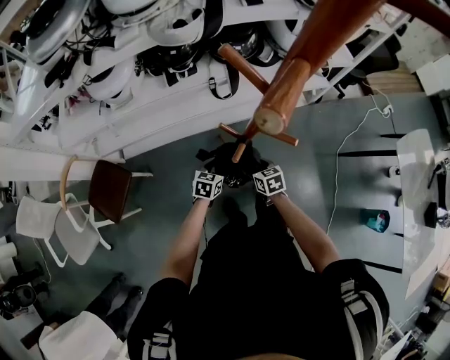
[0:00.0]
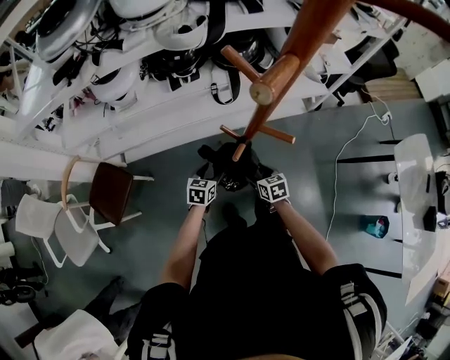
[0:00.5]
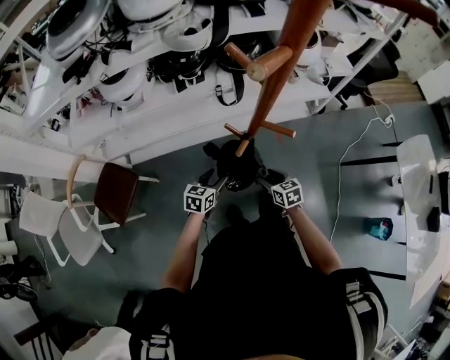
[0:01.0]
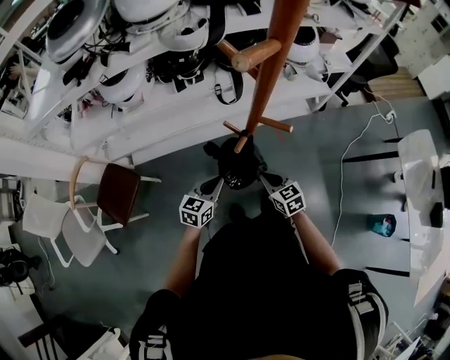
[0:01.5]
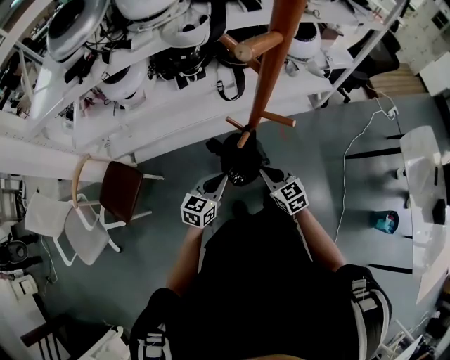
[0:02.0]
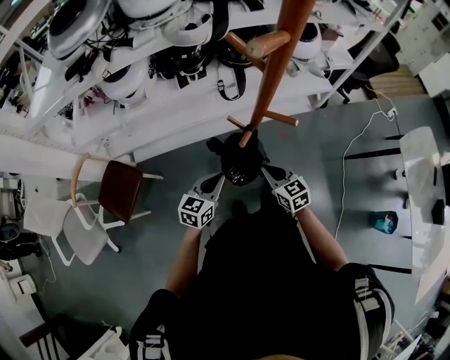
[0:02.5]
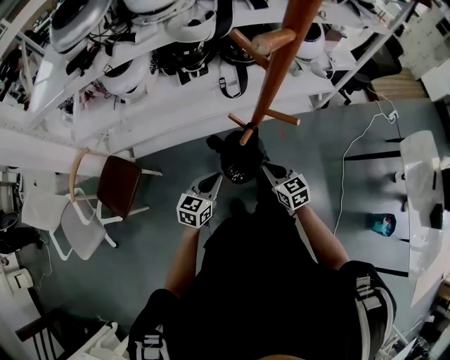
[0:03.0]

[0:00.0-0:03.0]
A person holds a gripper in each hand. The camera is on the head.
0:00.0 to 0:01.5: The grippers both shift upward and backward by some 15 cm. The left gripper closes, while the right gripper closes.
0:01.5 to 0:03.0: The grippers move only a little.

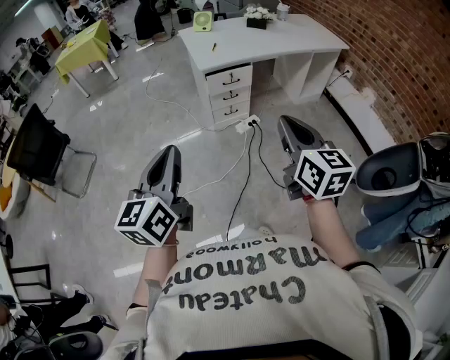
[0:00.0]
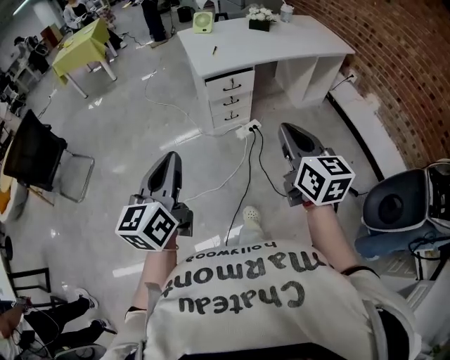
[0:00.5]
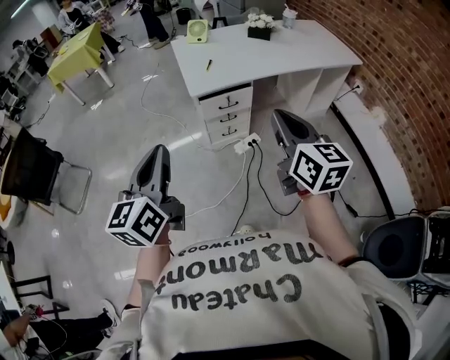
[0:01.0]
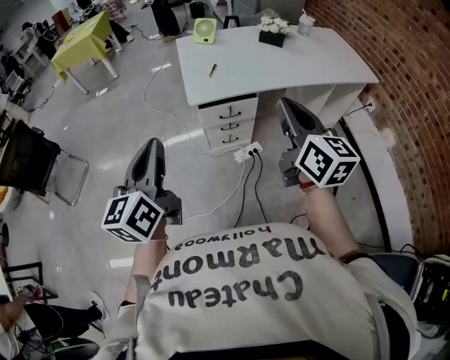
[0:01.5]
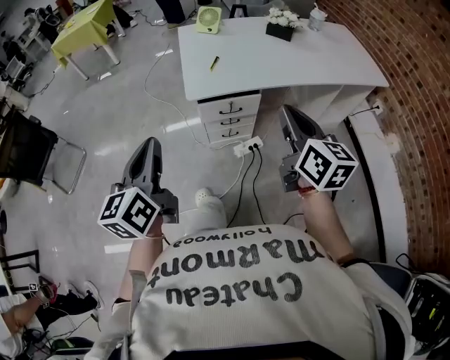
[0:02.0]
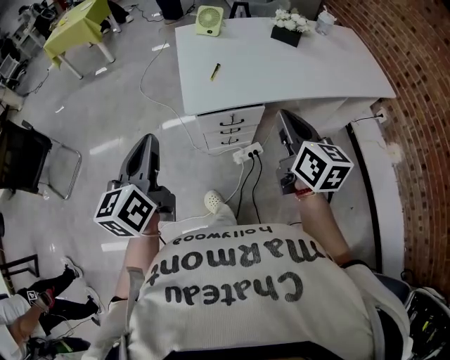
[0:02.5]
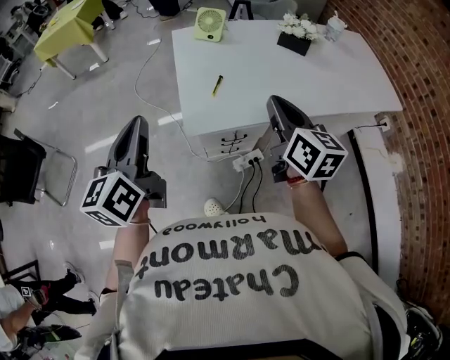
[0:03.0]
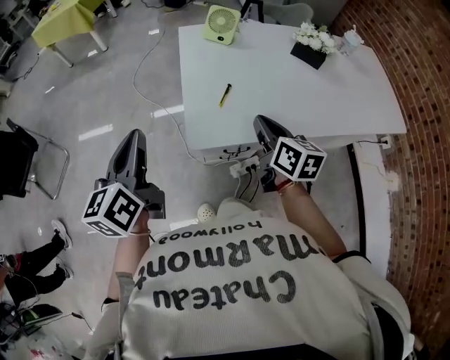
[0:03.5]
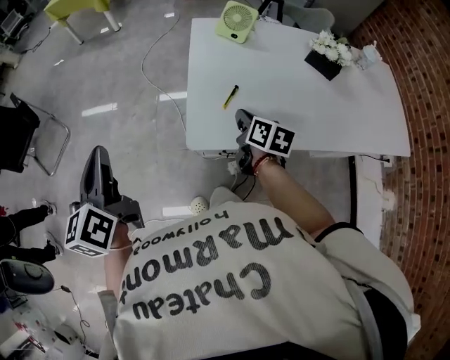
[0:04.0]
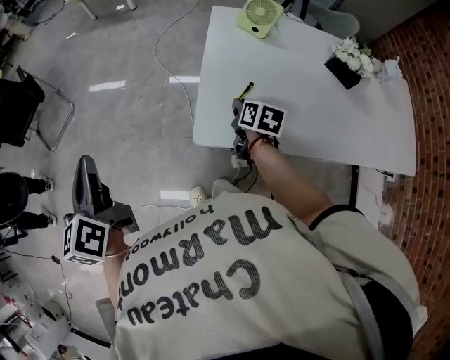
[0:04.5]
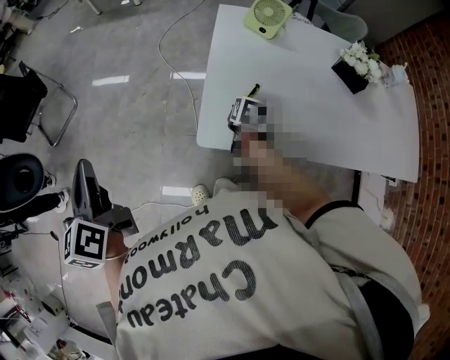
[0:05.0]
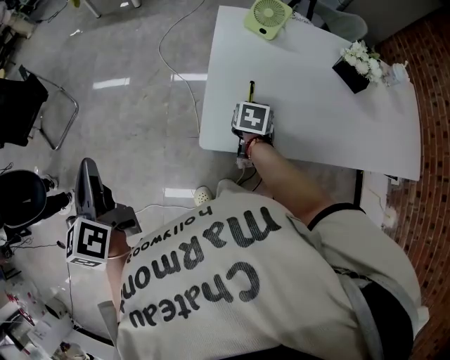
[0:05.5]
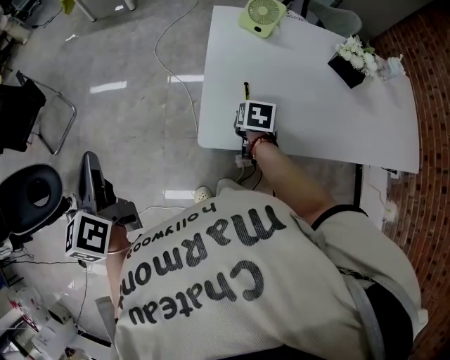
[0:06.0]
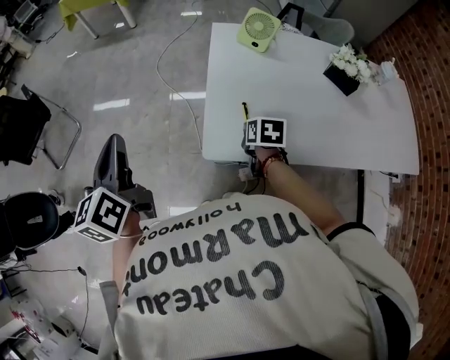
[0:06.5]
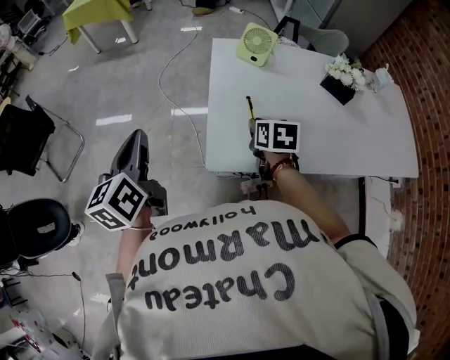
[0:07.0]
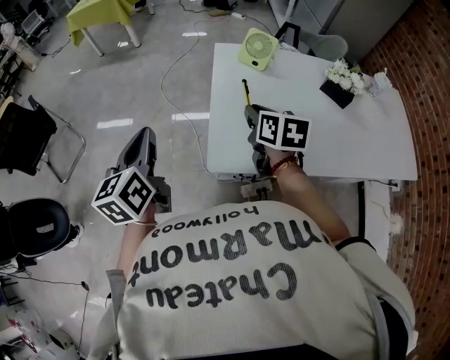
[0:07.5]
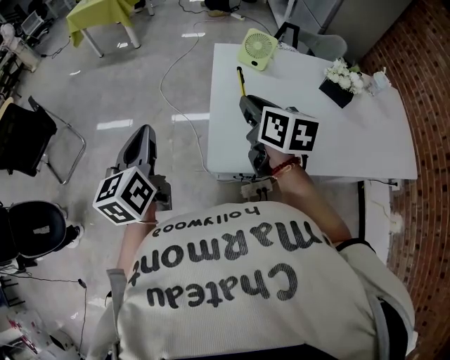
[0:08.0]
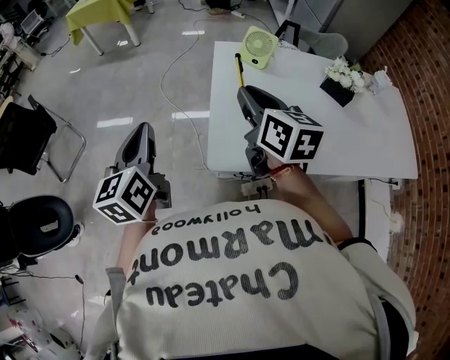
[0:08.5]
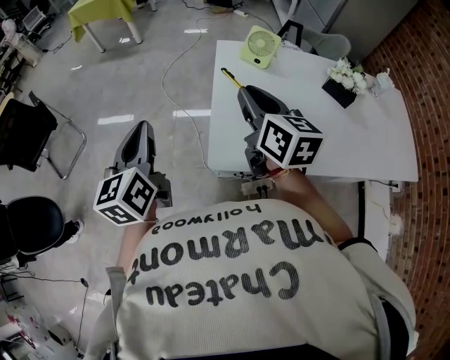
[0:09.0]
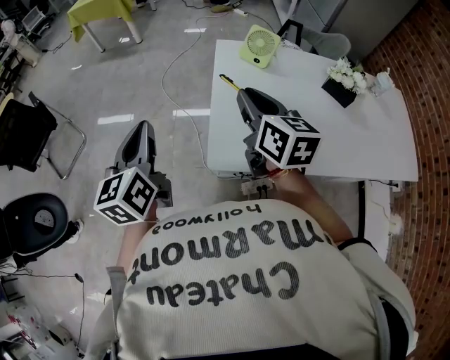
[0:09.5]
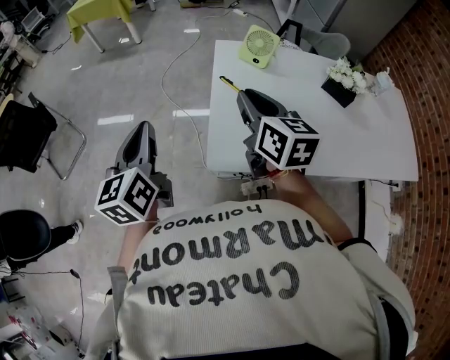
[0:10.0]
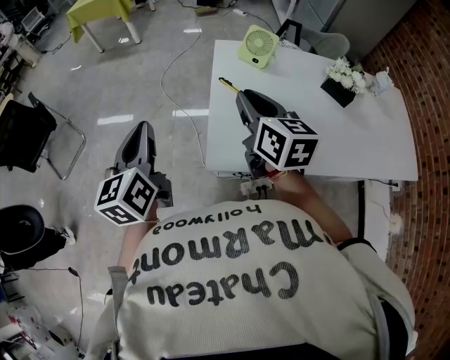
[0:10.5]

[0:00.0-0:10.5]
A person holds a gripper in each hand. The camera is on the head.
0:00.0 to 0:02.0: The two grippers go about 40 cm forward.
0:02.0 to 0:04.0: The right gripper moves forward and downward, approximately 50 cm, and rotates roughly 30 degrees; the left gripper travels forward by roughly 30 cm, and swivels roughly 20 degrees.
0:04.0 to 0:06.5: The left gripper goes approximately 5 cm forward. Meanwhile the right gripper moves downward, approximately 5 cm, and swivels about 30 degrees.
0:06.5 to 0:08.5: The left gripper ends up roughly 5 cm from where it was, while the right gripper heads upward, covering approximately 25 cm, and tips its fingers upward by some 40 degrees.
0:08.5 to 0:10.5: Both grippers stay put.

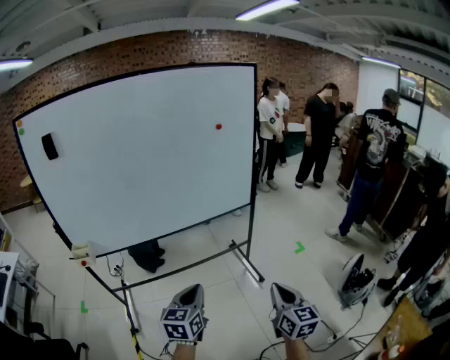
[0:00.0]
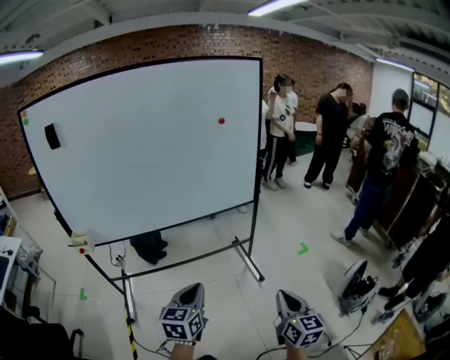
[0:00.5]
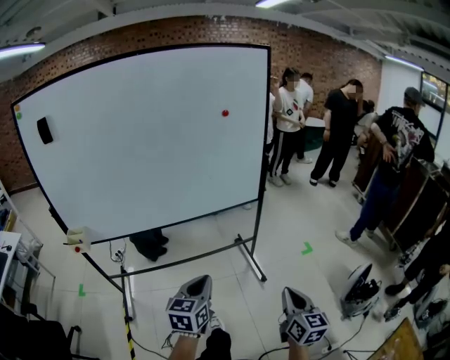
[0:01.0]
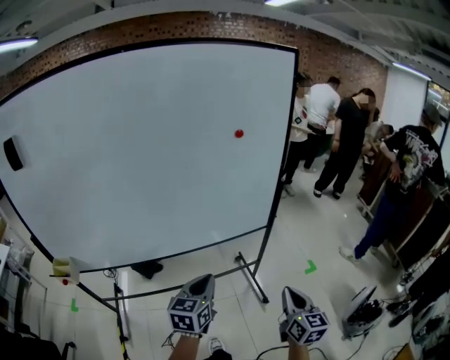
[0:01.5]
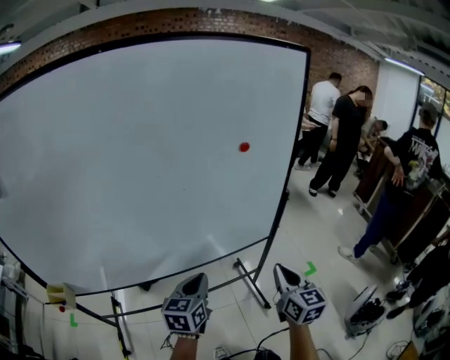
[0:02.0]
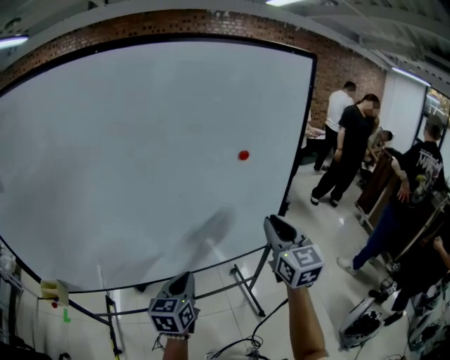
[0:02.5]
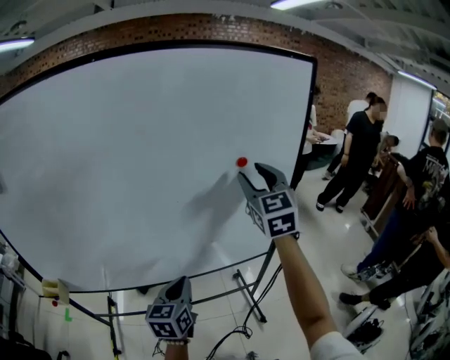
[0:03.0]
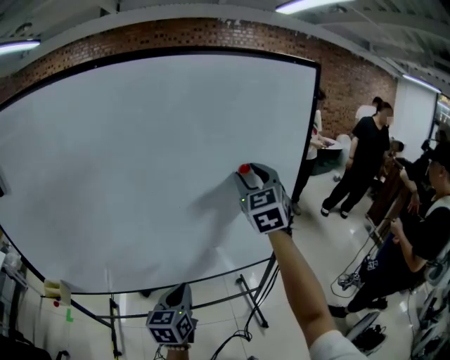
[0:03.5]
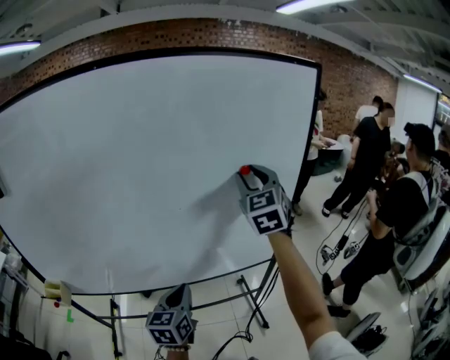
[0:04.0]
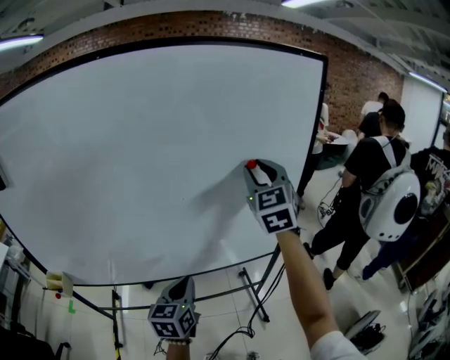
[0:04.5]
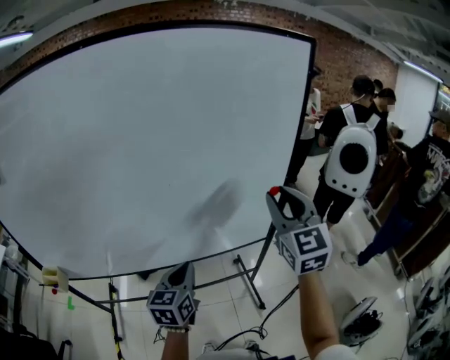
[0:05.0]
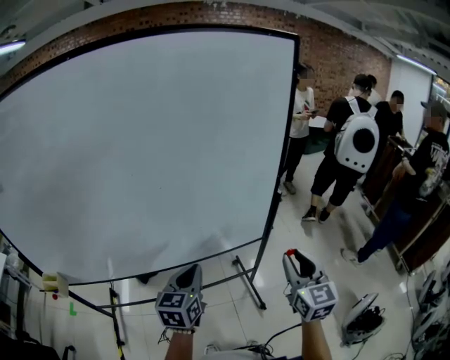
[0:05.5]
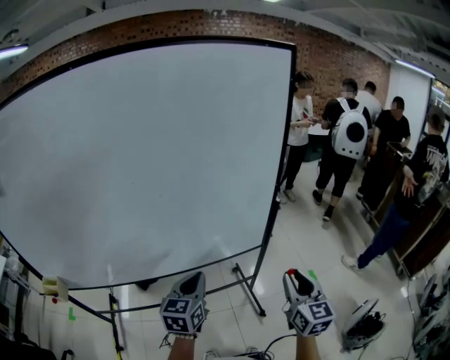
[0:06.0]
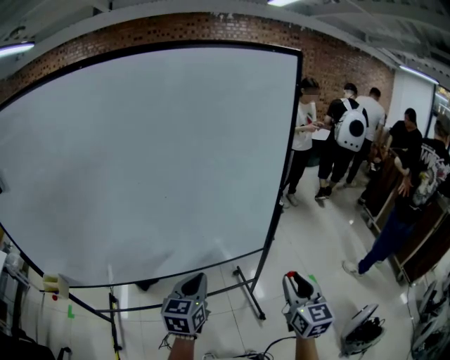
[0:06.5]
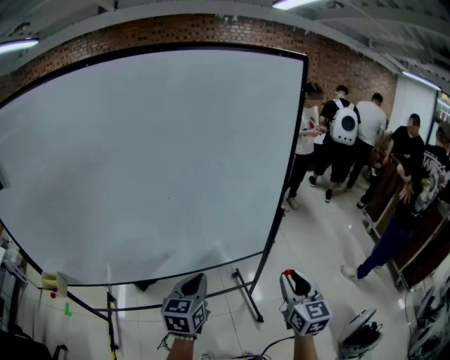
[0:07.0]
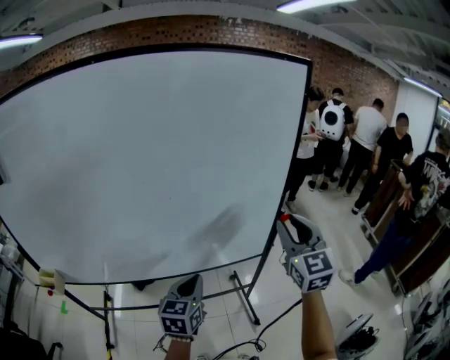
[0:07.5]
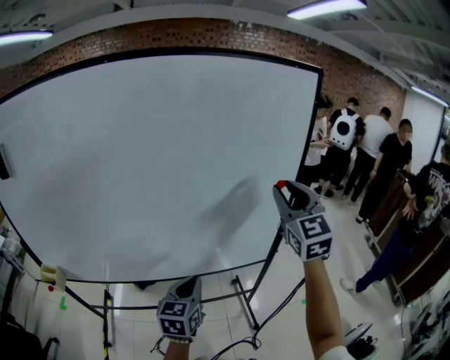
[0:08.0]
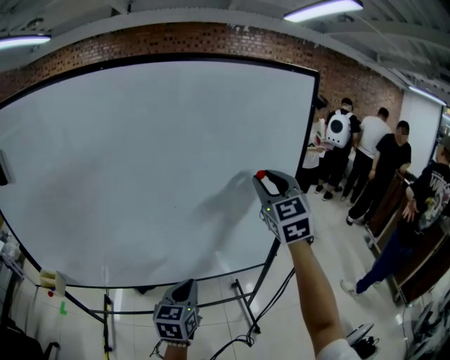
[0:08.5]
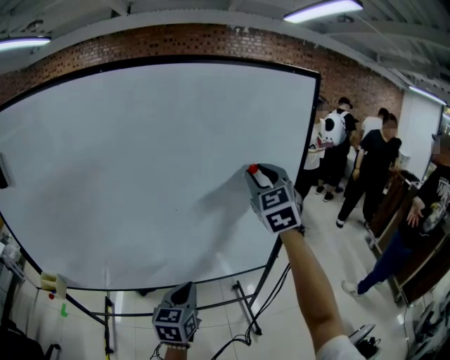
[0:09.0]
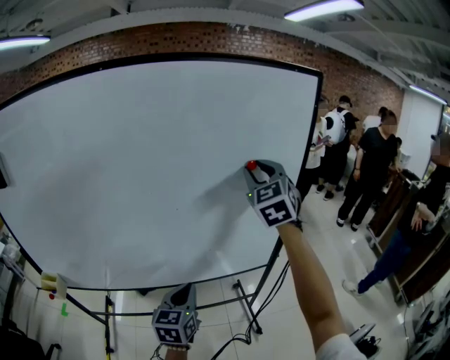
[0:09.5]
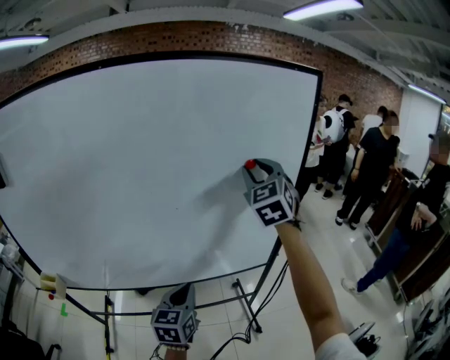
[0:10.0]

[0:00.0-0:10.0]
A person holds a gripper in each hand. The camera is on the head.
0:00.0 to 0:02.0: The pair of grippers is taken forward, some 40 cm.
0:02.0 to 0:04.0: The right gripper moves forward and upward, roughly 35 cm, swivels approximately 40 degrees, and opens.
0:04.0 to 0:06.0: The right gripper is displaced backward, downward and to the right by roughly 40 cm, and swivels some 30 degrees. Meanwhile the left gripper goes approximately 10 cm to the right.
0:06.0 to 0:08.0: The right gripper is displaced upward and forward by about 30 cm, and rotates roughly 30 degrees.
0:08.0 to 0:10.0: The right gripper heads forward and to the left, covering roughly 10 cm.

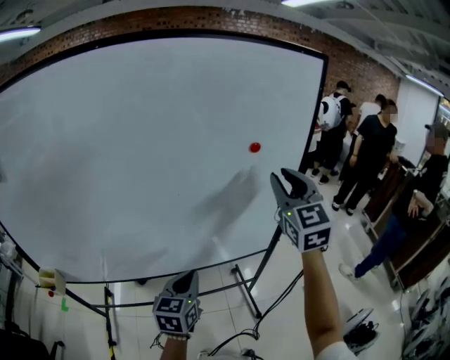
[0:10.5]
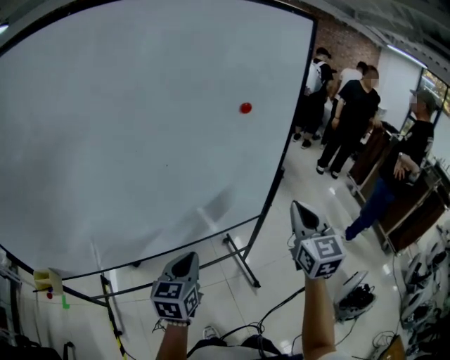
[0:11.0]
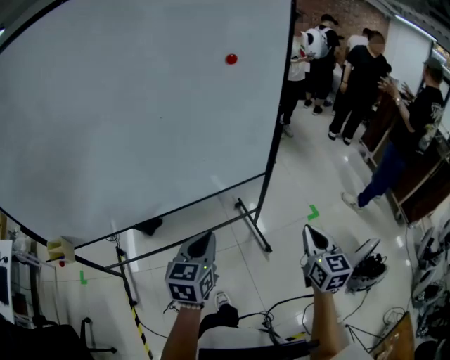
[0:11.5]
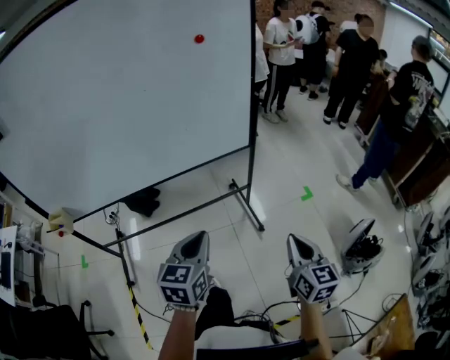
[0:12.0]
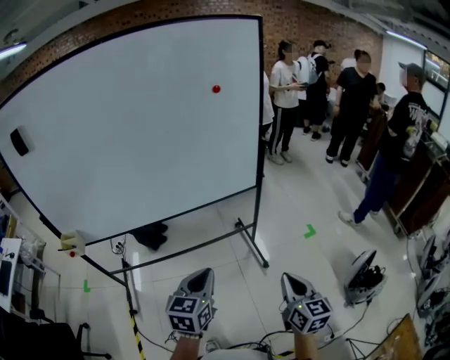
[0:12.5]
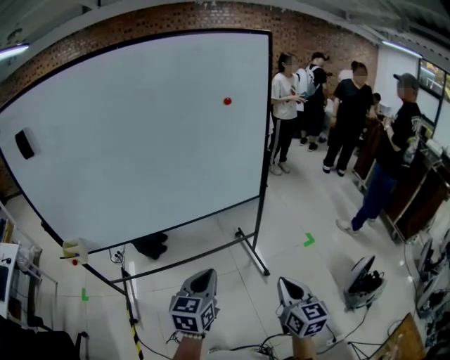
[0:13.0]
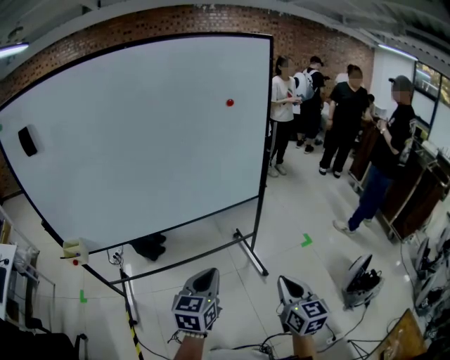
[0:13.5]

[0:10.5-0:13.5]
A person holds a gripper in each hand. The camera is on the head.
0:10.5 to 0:12.0: The left gripper heads backward and to the right, covering some 30 cm. Meanwhile the right gripper shifts about 60 cm backward, downward and to the right, rotates about 40 degrees, and closes up.
0:12.0 to 0:13.5: The right gripper is displaced to the left and backward by some 15 cm, while the left gripper shifts about 10 cm to the left and backward.
